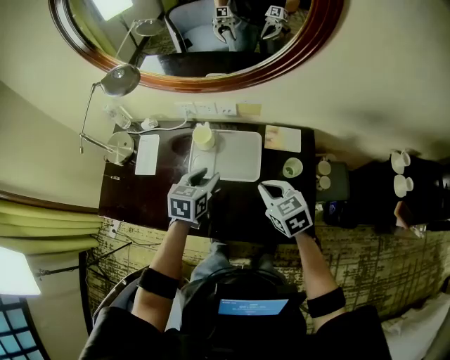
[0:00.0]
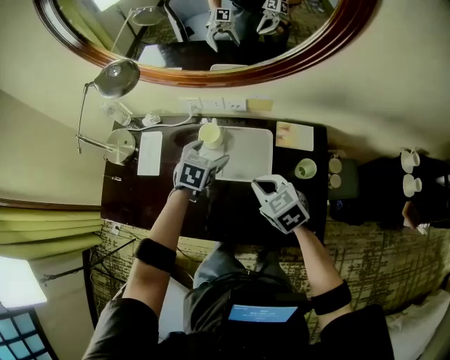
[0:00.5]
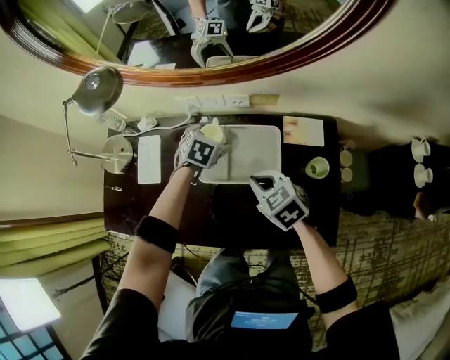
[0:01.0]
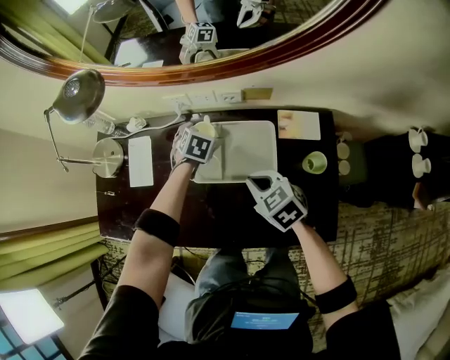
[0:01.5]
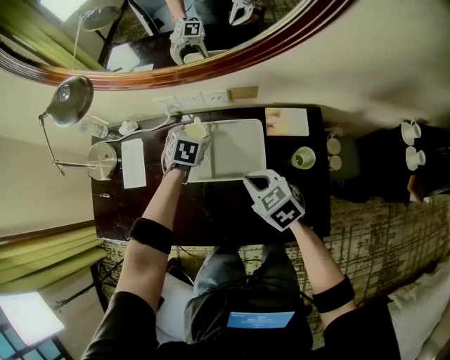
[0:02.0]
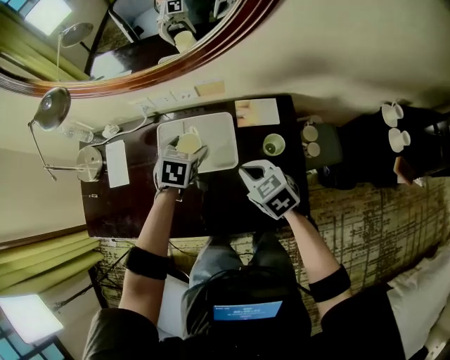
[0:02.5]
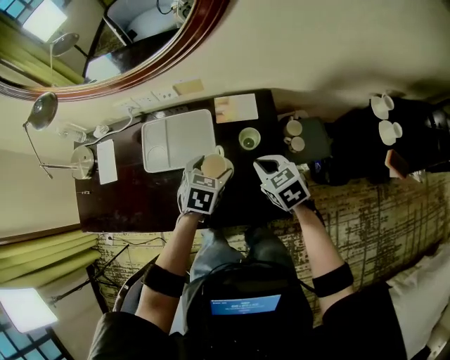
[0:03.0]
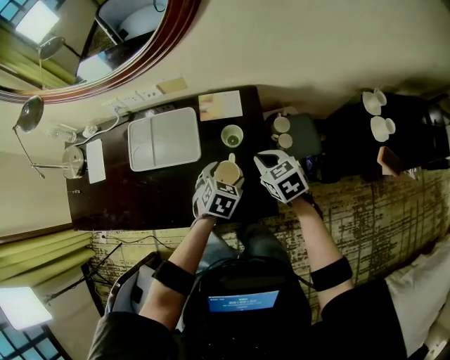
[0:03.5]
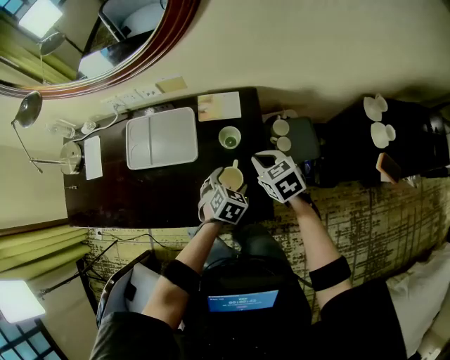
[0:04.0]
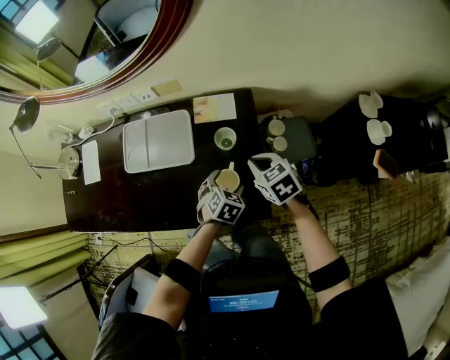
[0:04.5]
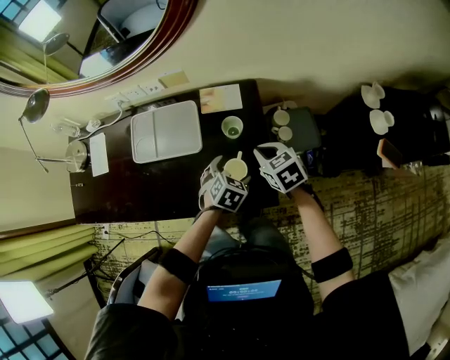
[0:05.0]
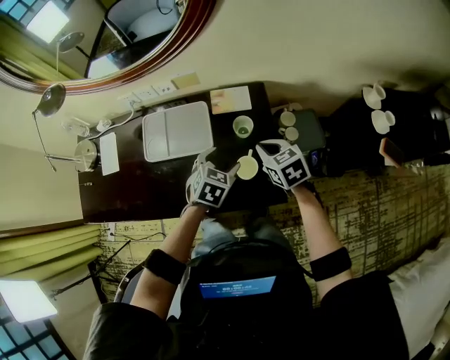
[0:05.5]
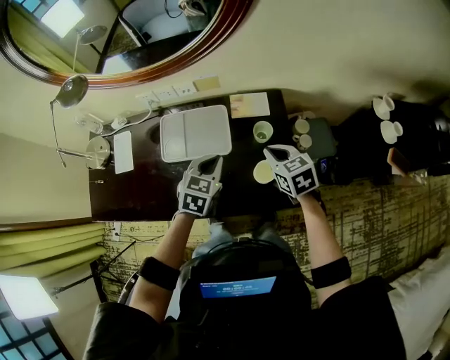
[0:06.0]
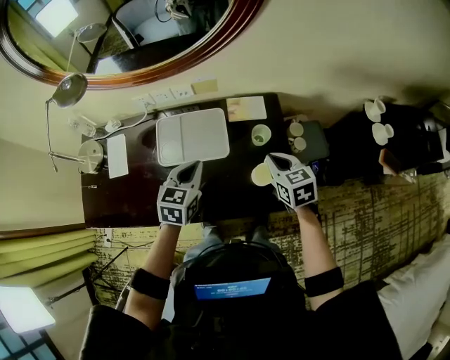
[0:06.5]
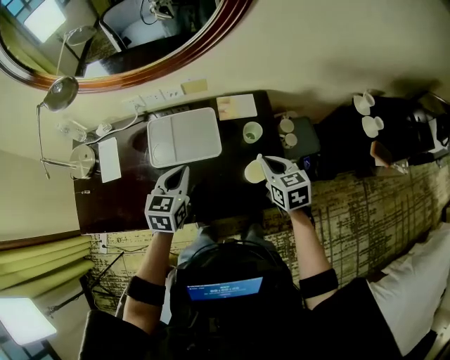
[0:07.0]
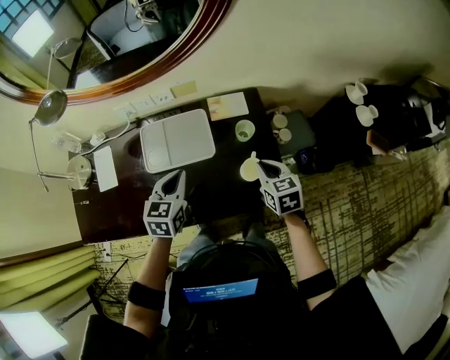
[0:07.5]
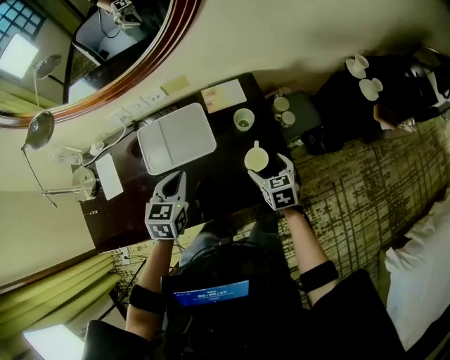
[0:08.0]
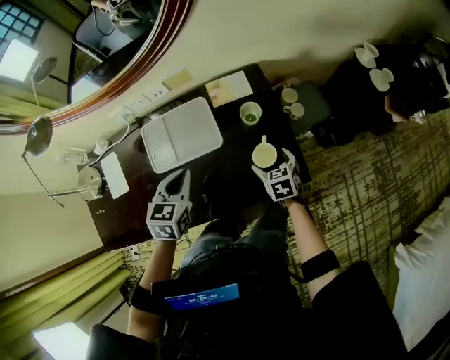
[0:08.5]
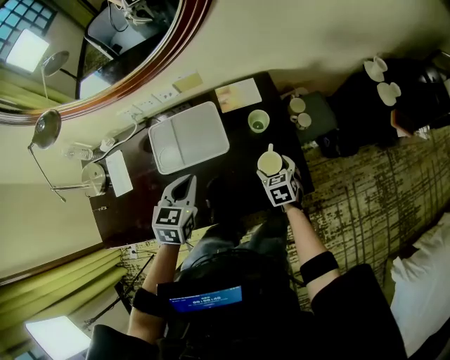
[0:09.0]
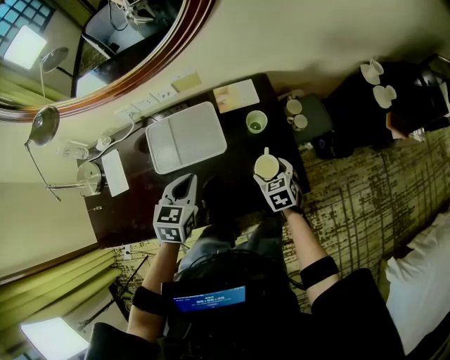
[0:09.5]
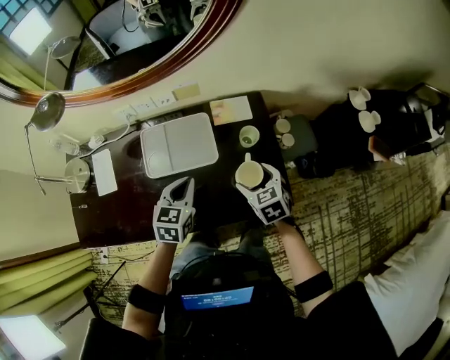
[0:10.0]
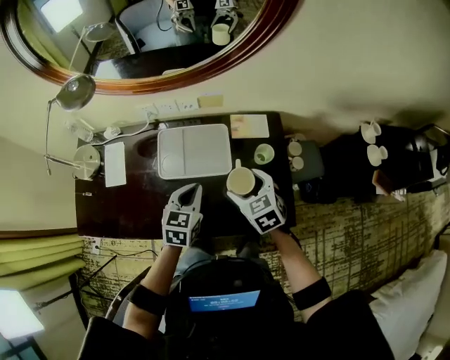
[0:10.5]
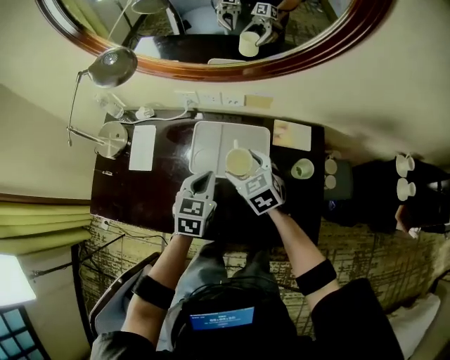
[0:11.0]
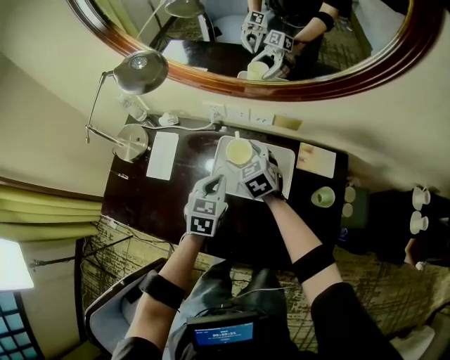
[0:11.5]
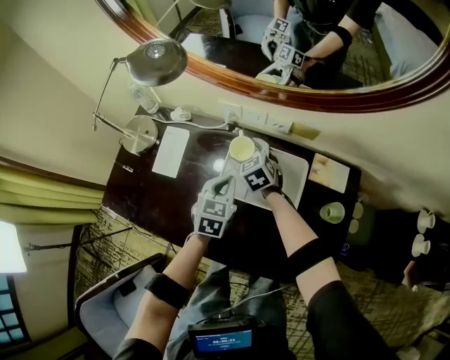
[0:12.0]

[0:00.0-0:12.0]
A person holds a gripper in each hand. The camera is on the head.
0:00.0 to 0:02.0: The left gripper is displaced forward and downward by roughly 25 cm, changes its angle by some 30 degrees, and opens up. Meanwhile the right gripper is displaced downward, forward and to the left by some 10 cm.
0:02.0 to 0:04.0: The right gripper heads to the right, covering approximately 30 cm, while the left gripper is displaced to the right and backward by some 40 cm.
0:04.0 to 0:06.0: The left gripper moves to the left and upward, roughly 25 cm, and closes up. Meanwhile the right gripper shifts approximately 10 cm to the left and upward.
0:06.0 to 0:08.0: The right gripper shifts about 10 cm downward and backward, changes its angle by roughly 20 degrees, and opens up, while the left gripper travels to the left by approximately 10 cm.
0:08.0 to 0:10.0: The right gripper heads to the left, covering about 5 cm, and travels downward and back again, some 10 cm each way.
0:10.0 to 0:12.0: The right gripper moves approximately 40 cm, and turns by approximately 30 degrees; the left gripper shifts by about 20 cm, and rotates about 20 degrees.

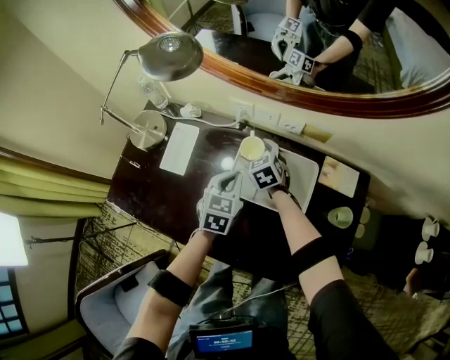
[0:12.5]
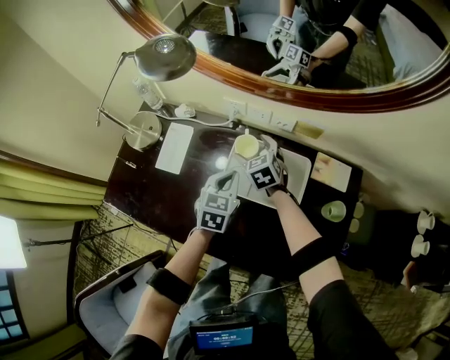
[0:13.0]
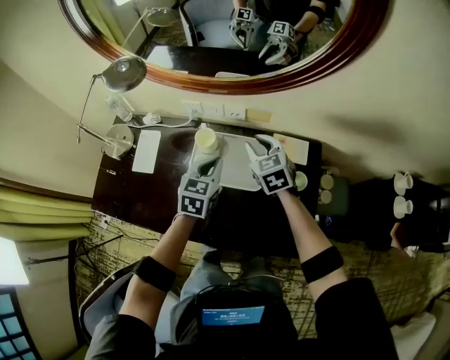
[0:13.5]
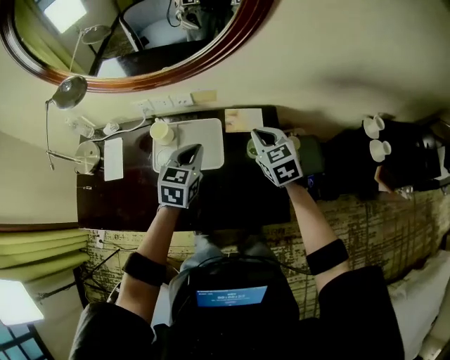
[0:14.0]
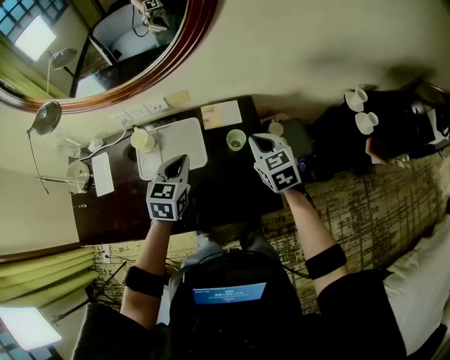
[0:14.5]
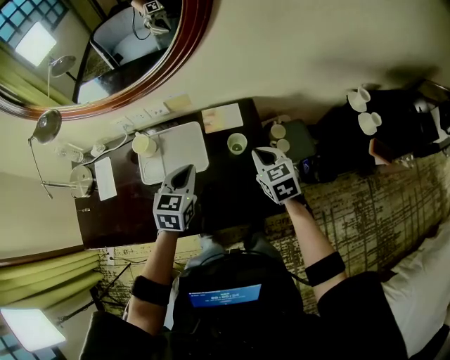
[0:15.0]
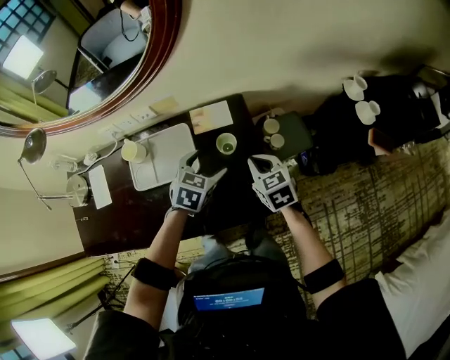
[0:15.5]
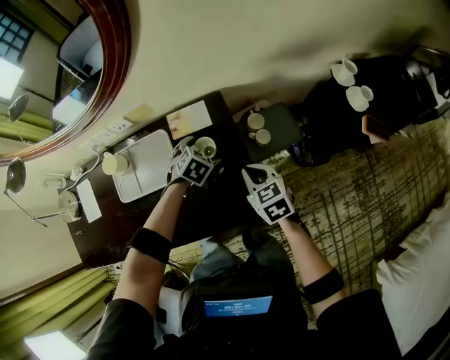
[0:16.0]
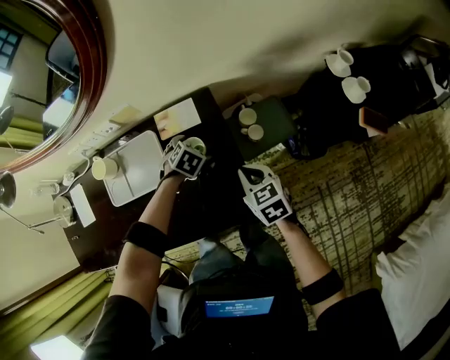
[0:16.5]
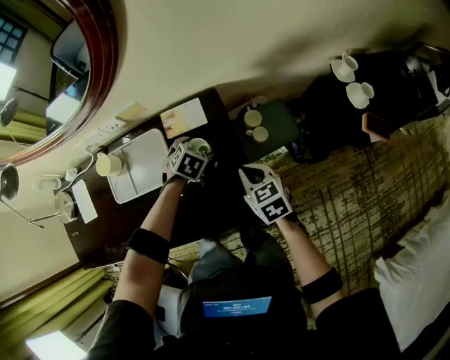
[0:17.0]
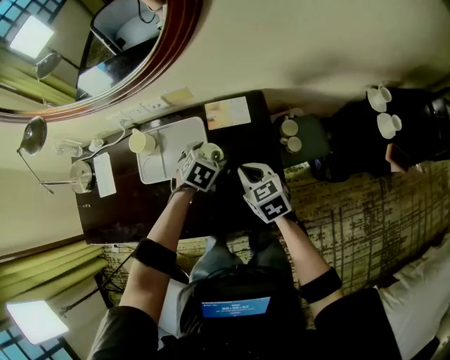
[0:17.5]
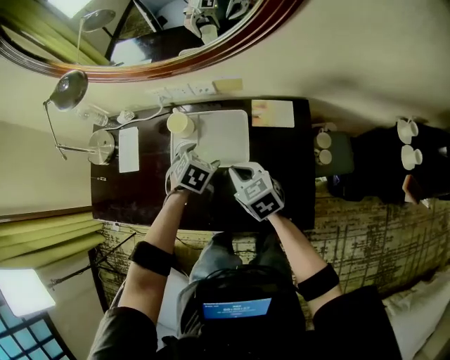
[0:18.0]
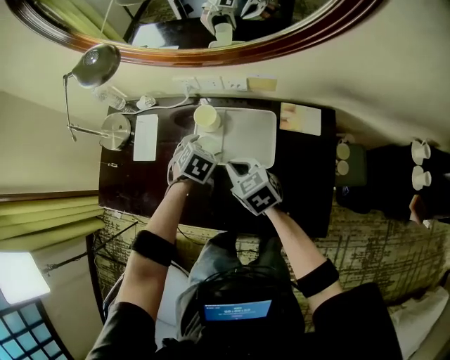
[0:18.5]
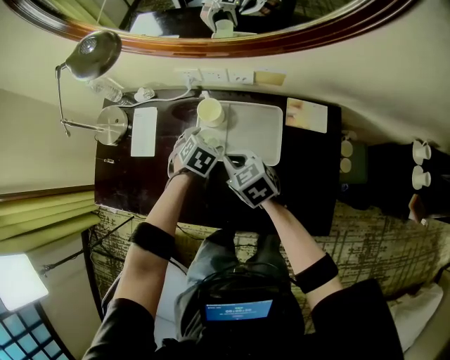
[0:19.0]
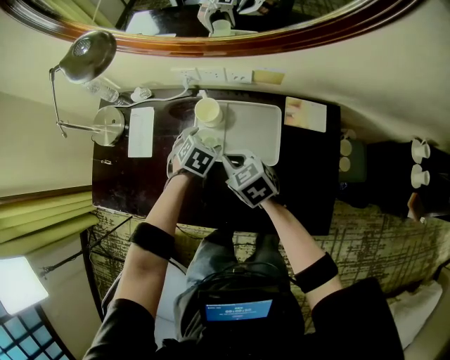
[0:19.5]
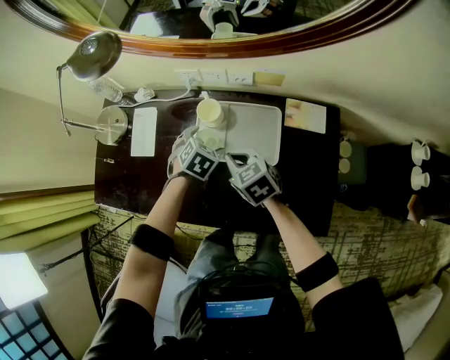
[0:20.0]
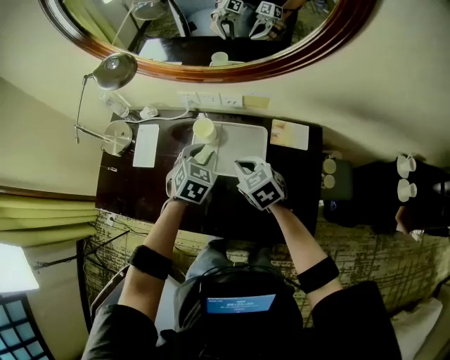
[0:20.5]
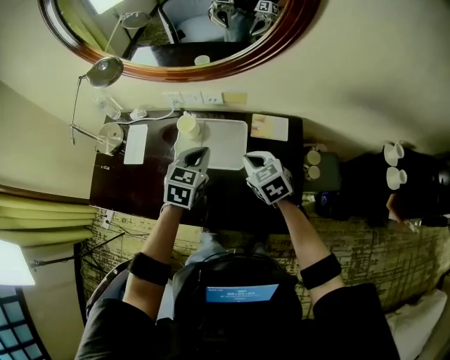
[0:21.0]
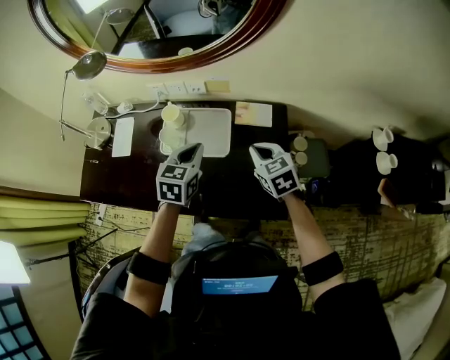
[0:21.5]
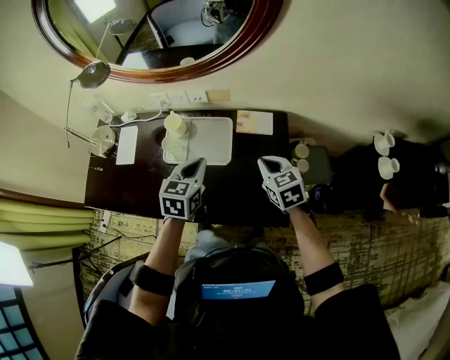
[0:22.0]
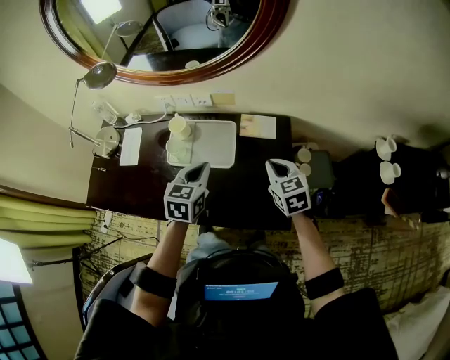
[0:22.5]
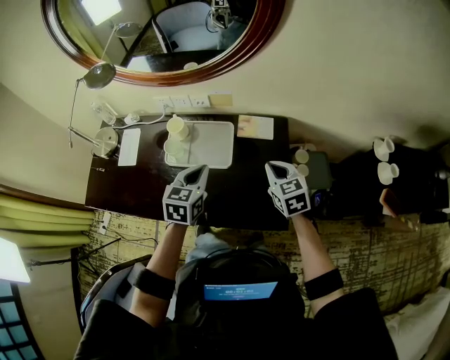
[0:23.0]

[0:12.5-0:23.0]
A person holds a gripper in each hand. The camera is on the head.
0:12.5 to 0:14.5: The left gripper shifts by roughly 25 cm, and swivels some 20 degrees. The right gripper changes place by some 50 cm, swivels about 30 degrees, and closes.
0:14.5 to 0:16.5: The right gripper shifts approximately 15 cm downward and to the right; the left gripper heads downward, to the right and forward, covering approximately 30 cm, tilts its fingers about 40 degrees downward, and opens.
0:16.5 to 0:19.0: The left gripper moves roughly 40 cm, and changes its angle by some 30 degrees; the right gripper moves some 40 cm, and changes its angle by about 30 degrees.
0:19.0 to 0:21.0: The right gripper goes approximately 20 cm to the right and upward. The left gripper travels upward, backward and to the right by about 25 cm, tilts its fingers about 30 degrees upward, and closes up.
0:21.0 to 0:23.0: The left gripper shifts some 10 cm backward, while the right gripper travels to the right and backward by roughly 15 cm.

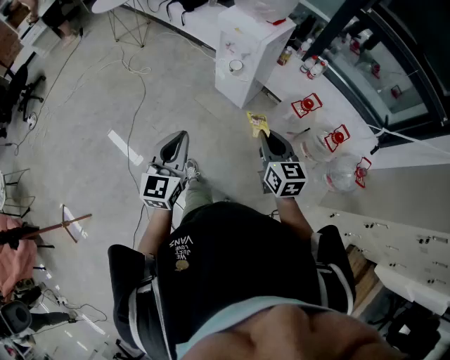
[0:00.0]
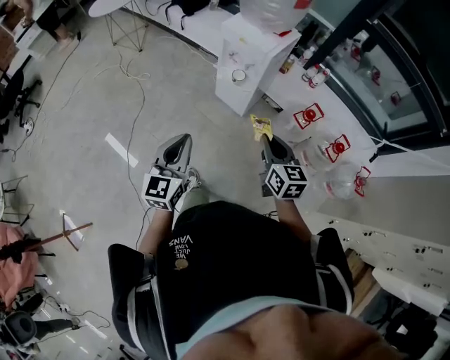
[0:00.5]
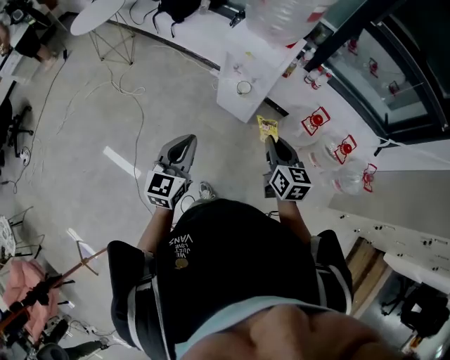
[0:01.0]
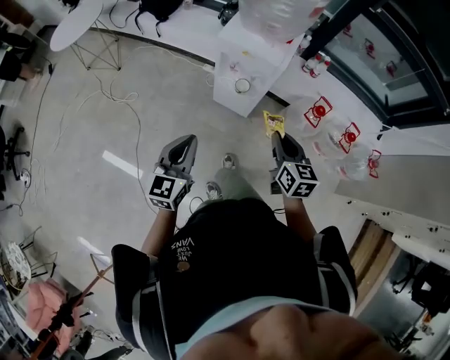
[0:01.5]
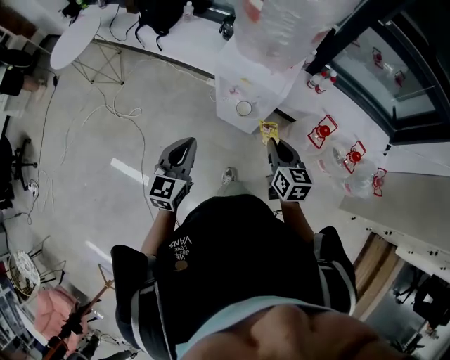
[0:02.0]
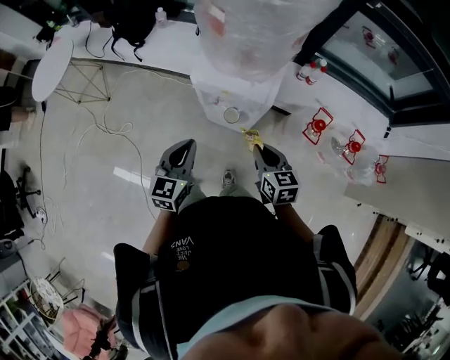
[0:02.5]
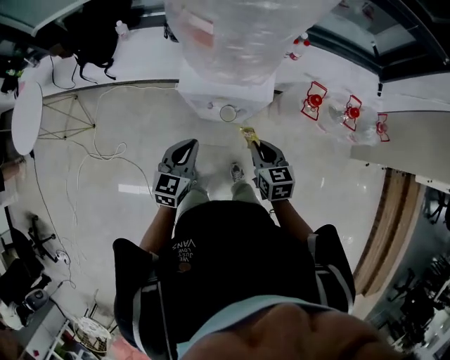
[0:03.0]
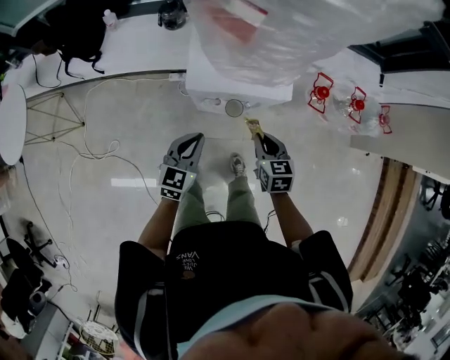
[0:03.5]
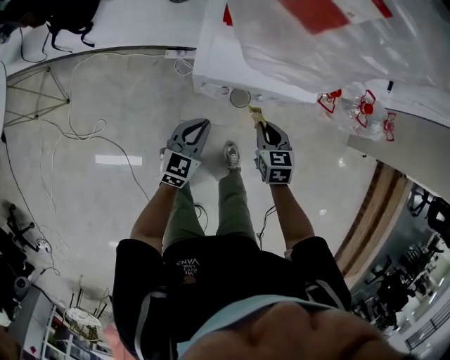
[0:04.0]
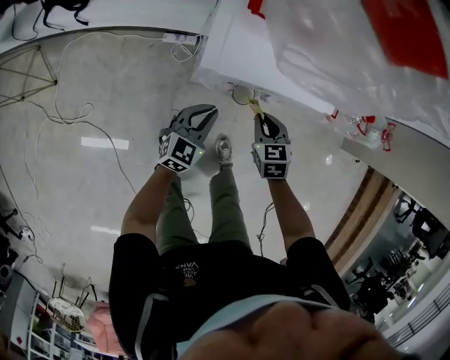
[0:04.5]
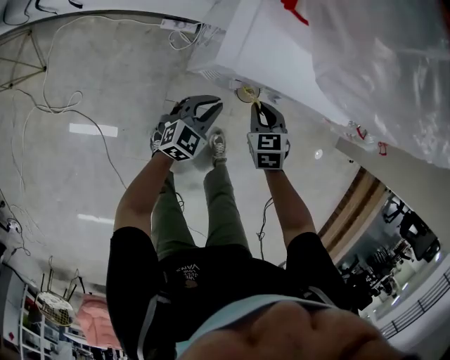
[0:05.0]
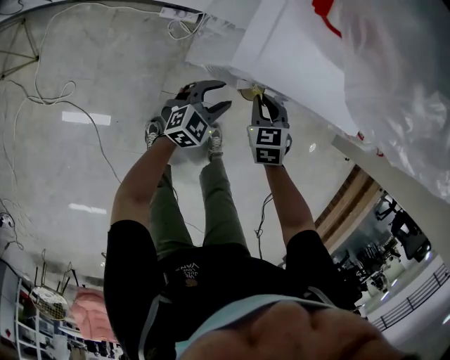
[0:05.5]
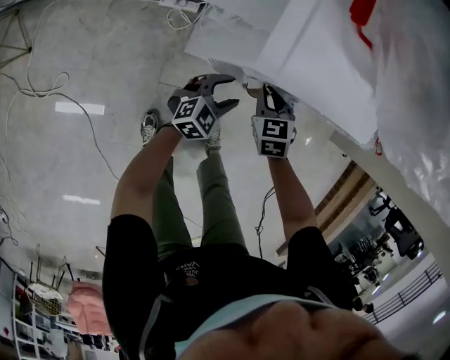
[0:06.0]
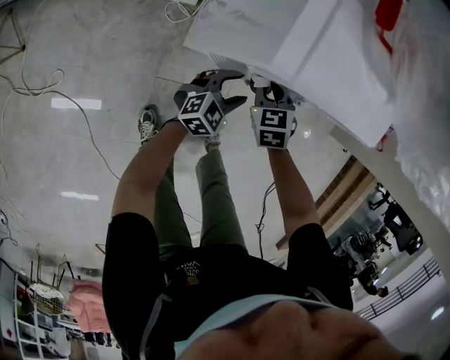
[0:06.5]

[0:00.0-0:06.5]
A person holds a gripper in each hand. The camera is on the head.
0:00.0 to 0:02.0: Both grippers move forward, about 40 cm. The right gripper turns by some 20 degrees. The left gripper swivels approximately 20 degrees.
0:02.0 to 0:04.5: The two grippers go roughly 30 cm downward. The right gripper rotates about 30 degrees; the left gripper rotates roughly 40 degrees.
0:04.5 to 0:06.5: The left gripper travels downward by approximately 15 cm, and opens up. The right gripper heads downward, to the left and forward, covering approximately 15 cm.
